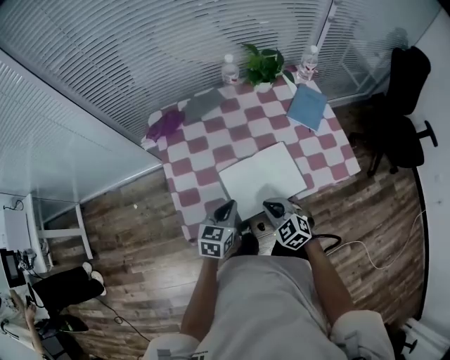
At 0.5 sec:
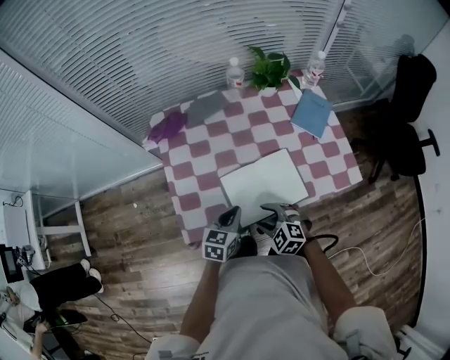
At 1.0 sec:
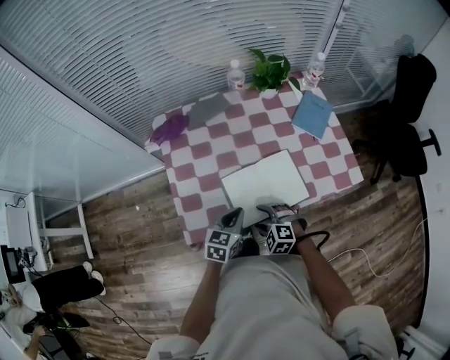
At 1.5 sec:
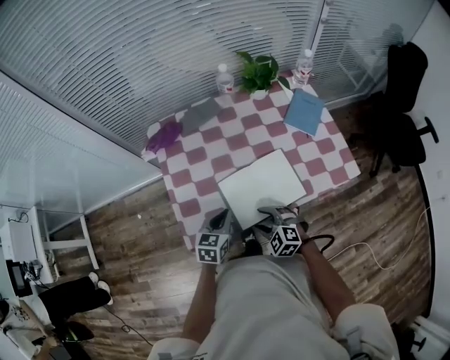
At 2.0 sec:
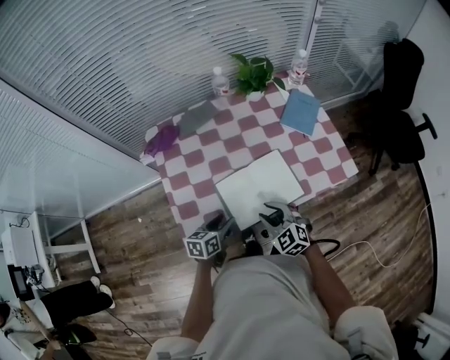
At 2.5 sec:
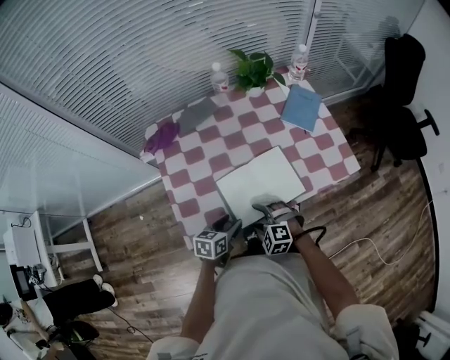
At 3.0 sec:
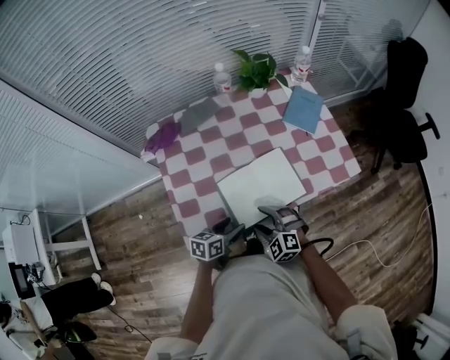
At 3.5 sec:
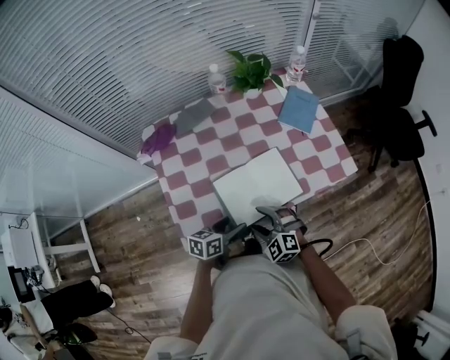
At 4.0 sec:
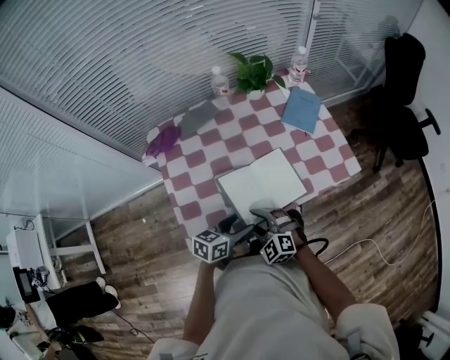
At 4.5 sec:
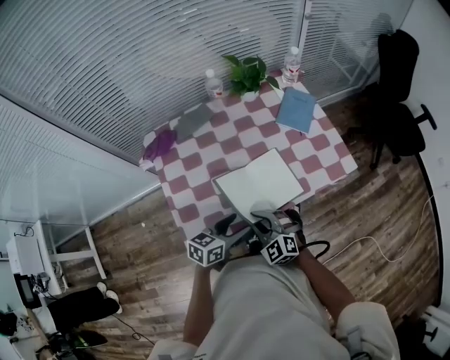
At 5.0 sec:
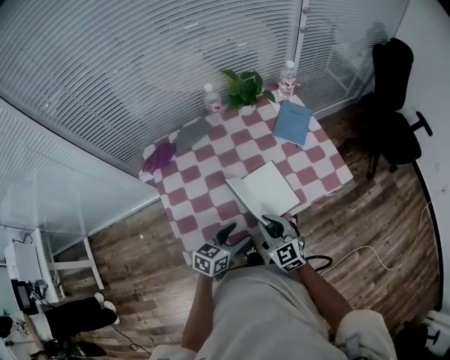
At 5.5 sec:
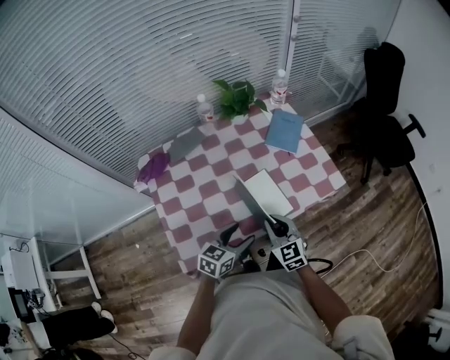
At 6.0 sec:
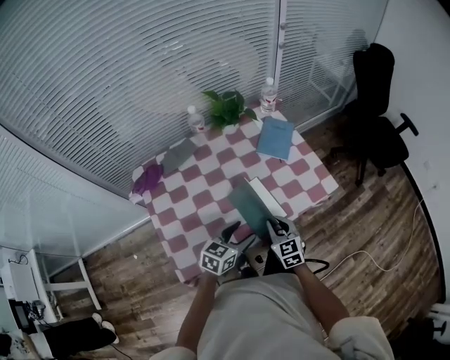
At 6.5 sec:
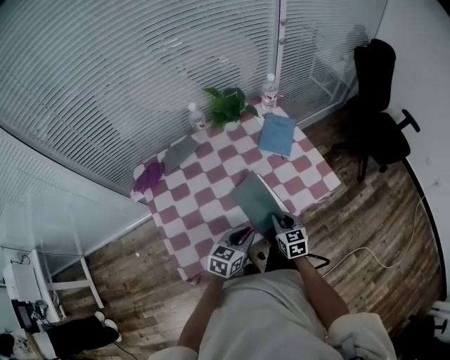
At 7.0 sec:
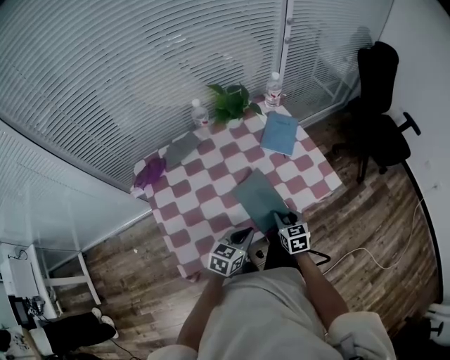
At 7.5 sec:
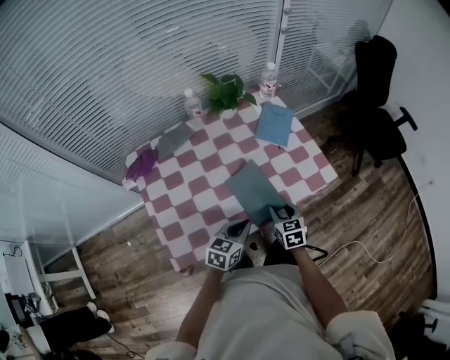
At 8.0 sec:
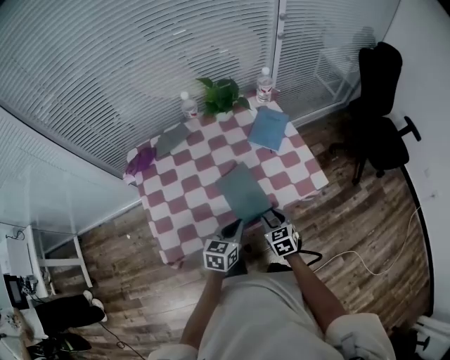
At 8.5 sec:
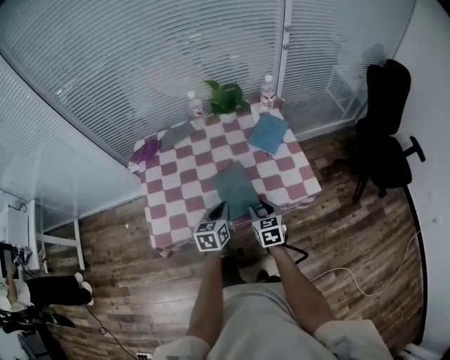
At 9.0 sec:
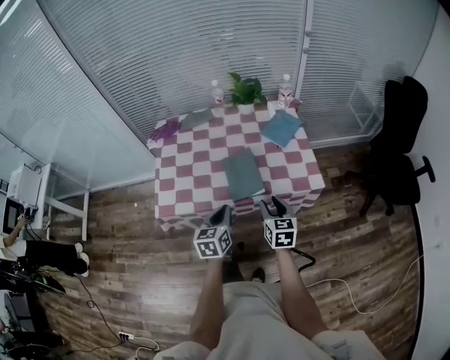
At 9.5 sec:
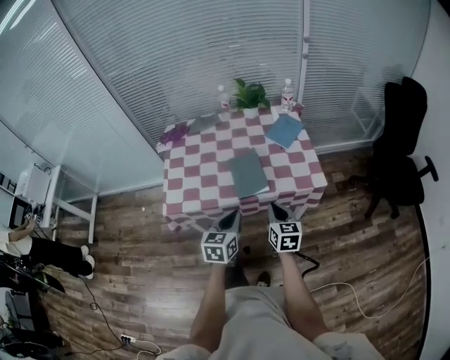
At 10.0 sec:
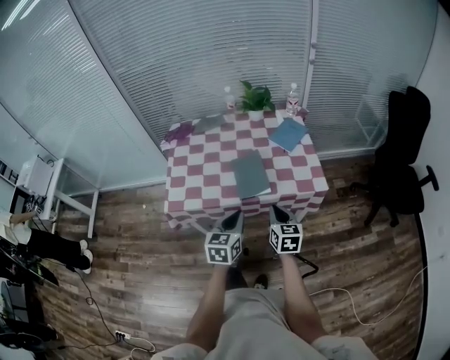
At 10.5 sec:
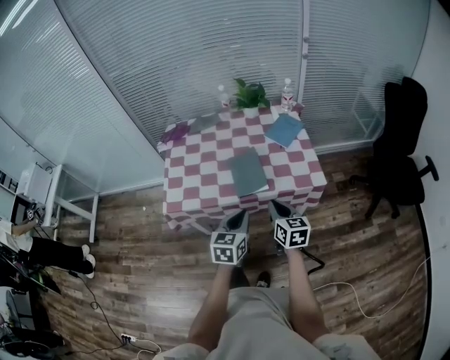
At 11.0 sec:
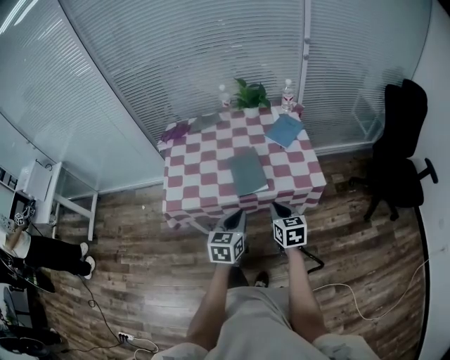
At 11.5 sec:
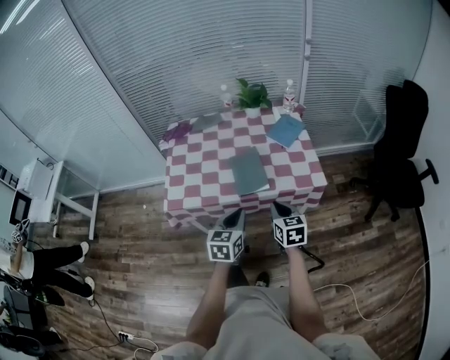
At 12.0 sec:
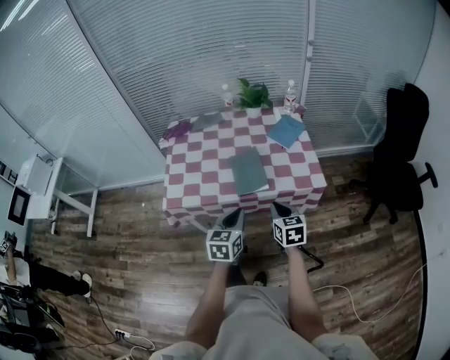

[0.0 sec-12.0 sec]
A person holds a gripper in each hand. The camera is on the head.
0.0 sec to 2.0 sec: The right gripper opens its fingers. Meanwhile the left gripper is displaced downward by approximately 5 cm, rotates some 20 degrees, and opens its fingers.
2.0 sec to 4.0 sec: The left gripper goes approximately 10 cm to the right and upward; the right gripper heads to the left, covering about 5 cm.
4.0 sec to 6.0 sec: The left gripper moves forward and to the right, roughly 10 cm; the right gripper shifts about 20 cm to the right and forward, rolls clockwise, seen from behind, by about 40 degrees, and closes up.
6.0 sec to 8.0 sec: The left gripper closes up; the right gripper travels to the right by about 5 cm, and opens its fingers.
8.0 sec to 10.0 sec: The right gripper moves upward and backward, some 15 cm, changes its angle by roughly 20 degrees, and closes its fingers; the left gripper goes roughly 15 cm backward and upward, and swivels about 30 degrees.
10.0 sec to 12.0 sec: The grippers make only small movements.

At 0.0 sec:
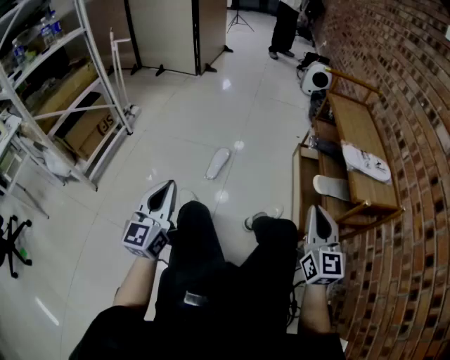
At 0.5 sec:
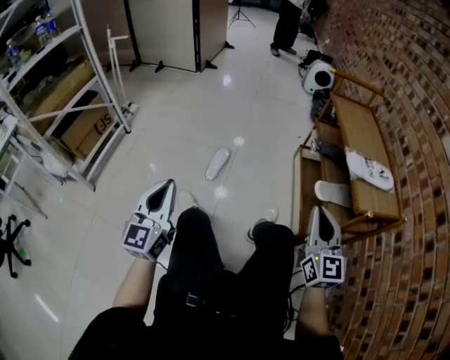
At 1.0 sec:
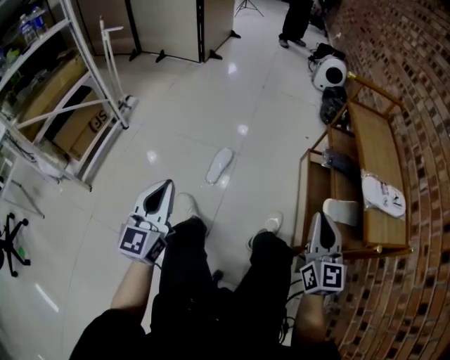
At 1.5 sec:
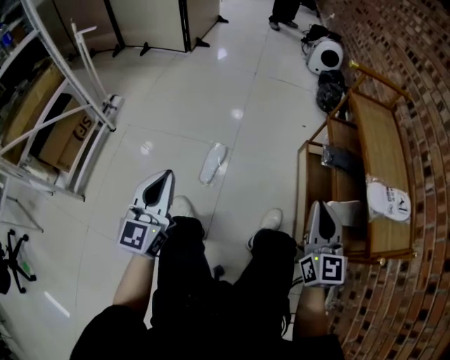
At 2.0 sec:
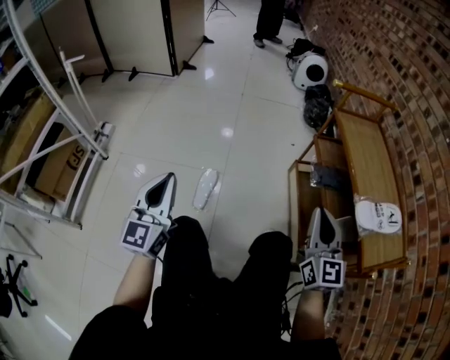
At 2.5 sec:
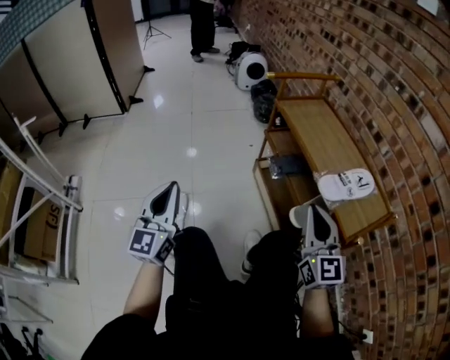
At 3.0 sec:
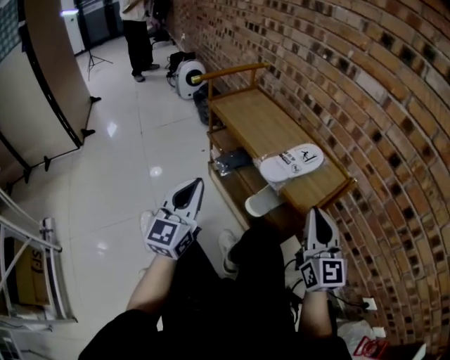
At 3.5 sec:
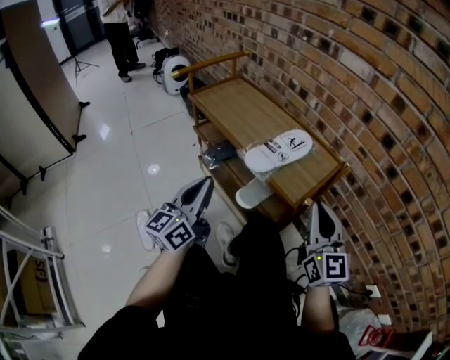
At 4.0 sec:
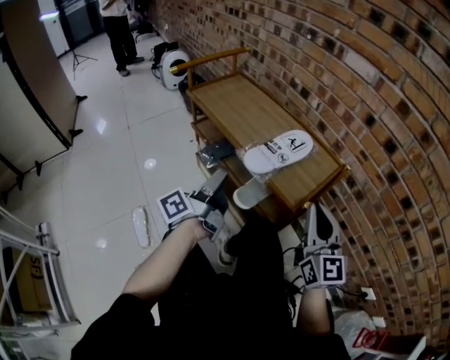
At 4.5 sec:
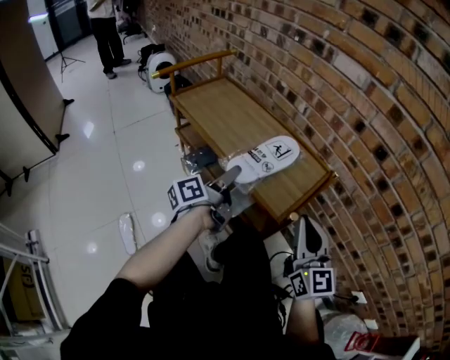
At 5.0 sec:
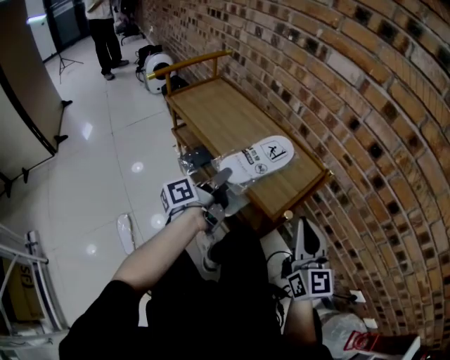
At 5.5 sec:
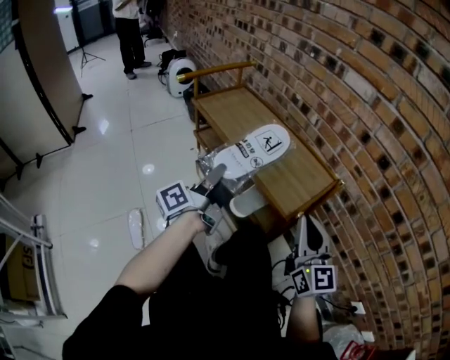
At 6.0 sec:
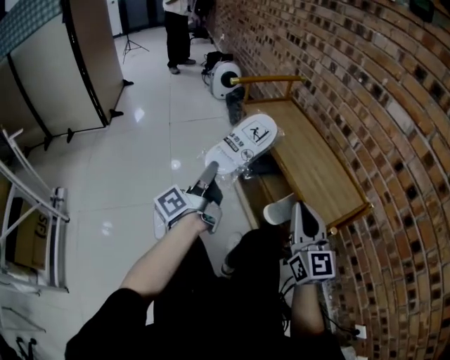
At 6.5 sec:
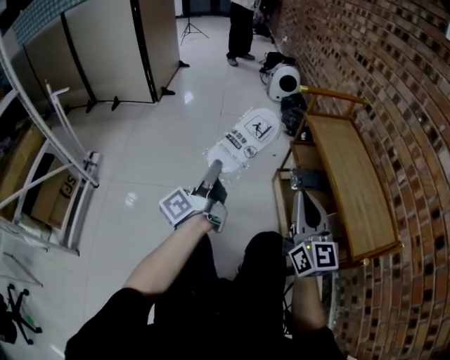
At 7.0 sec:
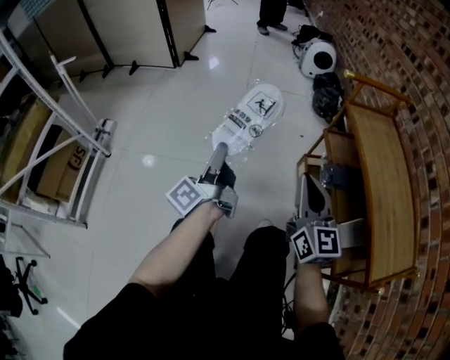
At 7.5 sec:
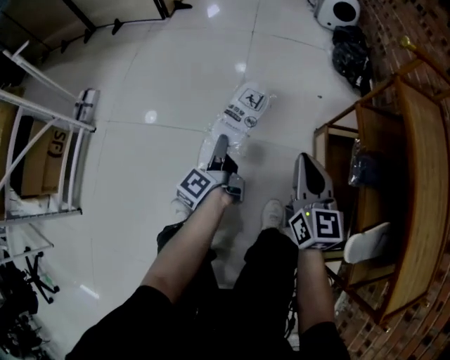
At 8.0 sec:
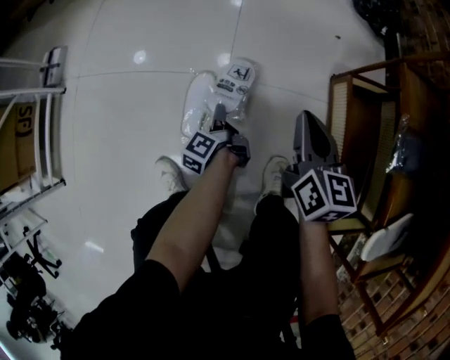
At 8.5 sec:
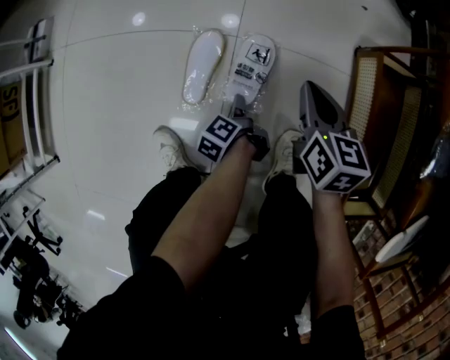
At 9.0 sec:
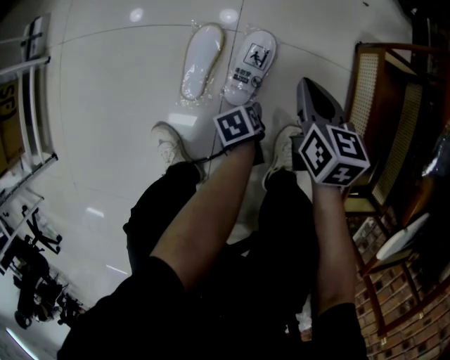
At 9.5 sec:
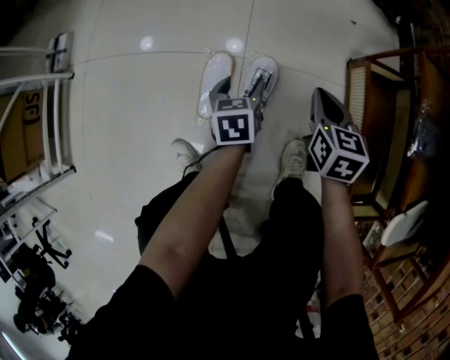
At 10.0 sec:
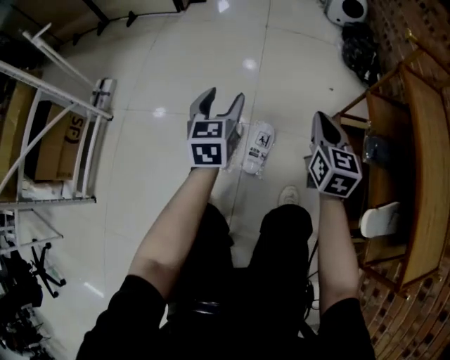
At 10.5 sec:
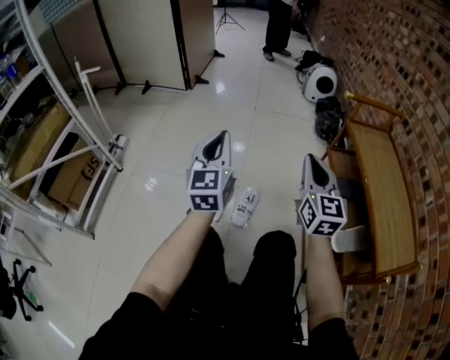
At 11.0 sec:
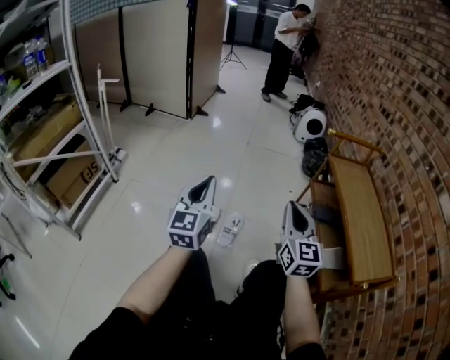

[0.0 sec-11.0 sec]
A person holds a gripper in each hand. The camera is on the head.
0.0 sec to 2.0 sec: Both grippers move forward, some 25 cm.
2.0 sec to 3.5 sec: The left gripper ends up about 40 cm from where it was, and changes its angle by roughly 60 degrees. Meanwhile the right gripper moves approximately 30 cm, and rotates some 30 degrees.
3.5 sec to 5.5 sec: The left gripper is displaced forward by about 10 cm, rolls counterclockwise, seen from behind, by roughly 50 degrees, and opens and closes again.
5.5 sec to 7.5 sec: The pair of grippers is taken approximately 50 cm. The left gripper turns by roughly 60 degrees; the right gripper changes its angle by approximately 40 degrees.
7.5 sec to 9.0 sec: The right gripper is displaced downward by about 25 cm, and angles its fingers downward, by some 30 degrees, while the left gripper is displaced downward and backward by about 35 cm, tilts its fingers roughly 60 degrees downward, and opens up.
9.0 sec to 11.0 sec: The right gripper shifts approximately 50 cm upward and backward, and tips its fingers upward by approximately 40 degrees; the left gripper heads upward, covering approximately 70 cm, tilts its fingers roughly 70 degrees upward, and closes up.

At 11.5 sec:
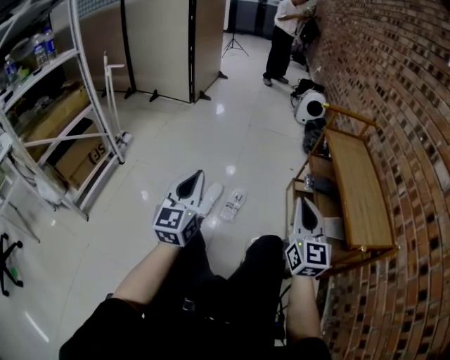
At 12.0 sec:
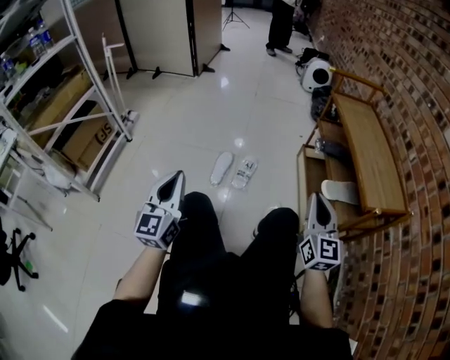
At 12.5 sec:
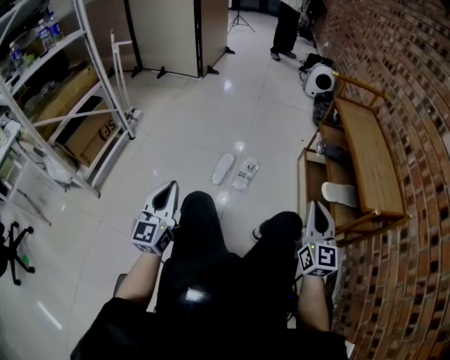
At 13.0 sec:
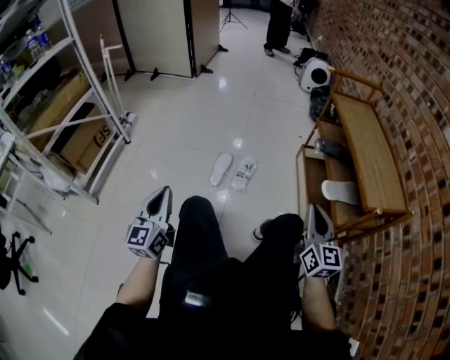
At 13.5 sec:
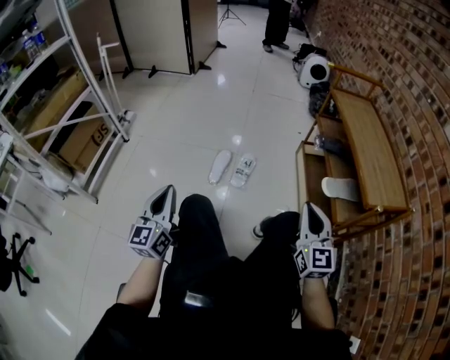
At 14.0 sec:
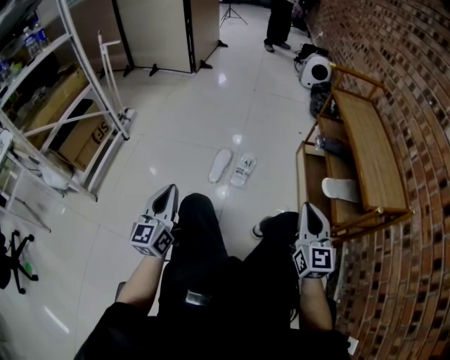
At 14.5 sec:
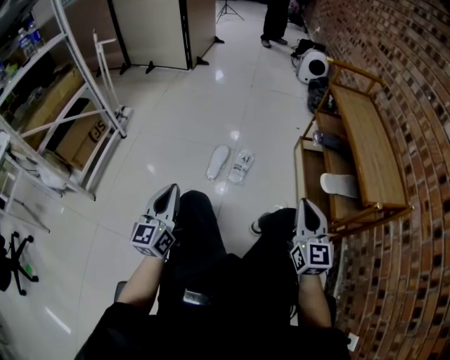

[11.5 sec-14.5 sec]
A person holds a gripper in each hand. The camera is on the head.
11.5 sec to 13.0 sec: The left gripper shifts some 20 cm backward, downward and to the left, while the right gripper travels downward and backward by roughly 15 cm.
13.0 sec to 14.5 sec: The grippers move only a little.
